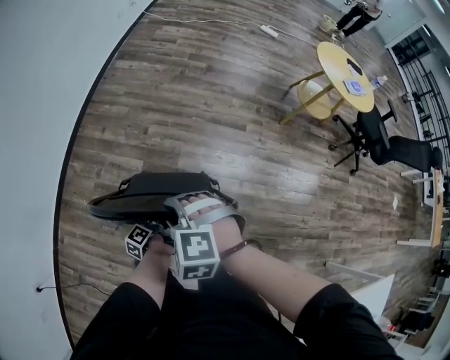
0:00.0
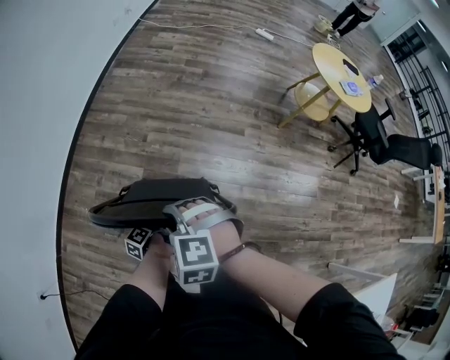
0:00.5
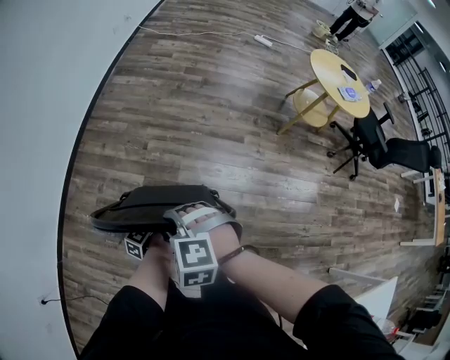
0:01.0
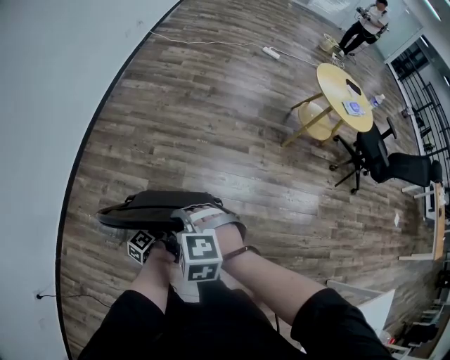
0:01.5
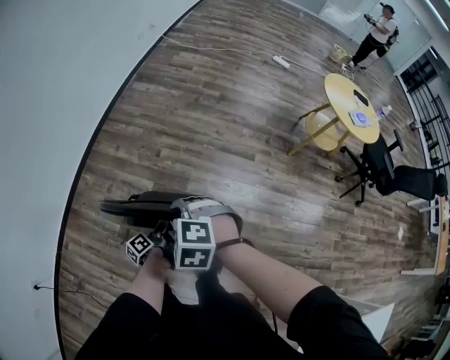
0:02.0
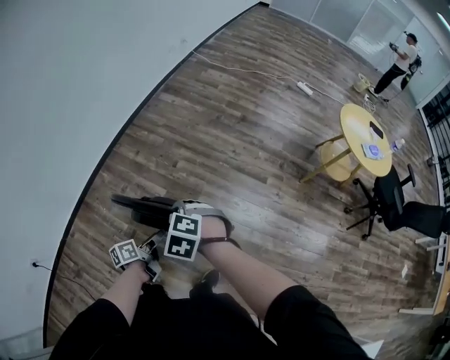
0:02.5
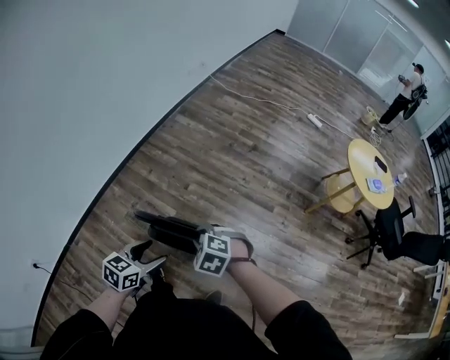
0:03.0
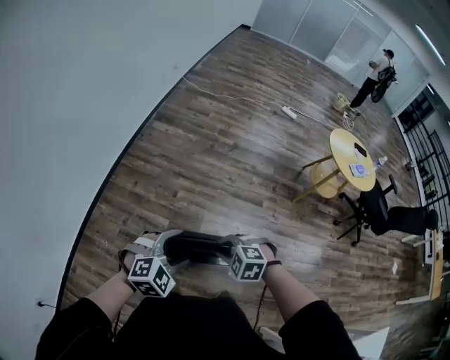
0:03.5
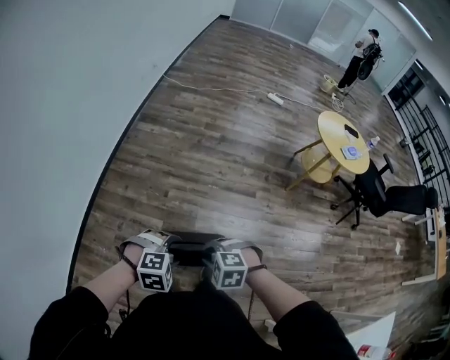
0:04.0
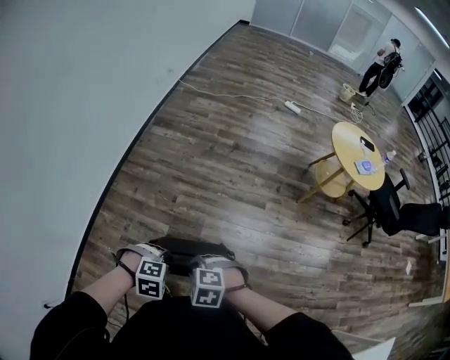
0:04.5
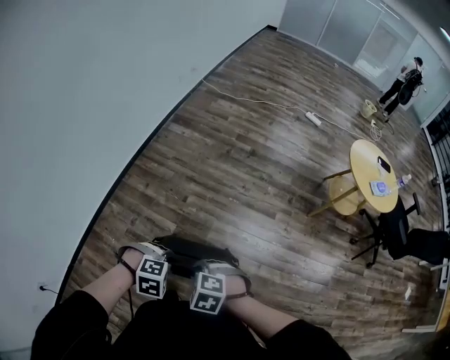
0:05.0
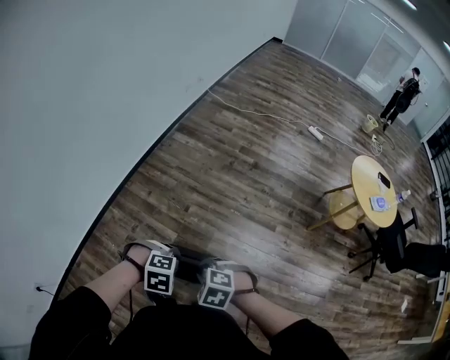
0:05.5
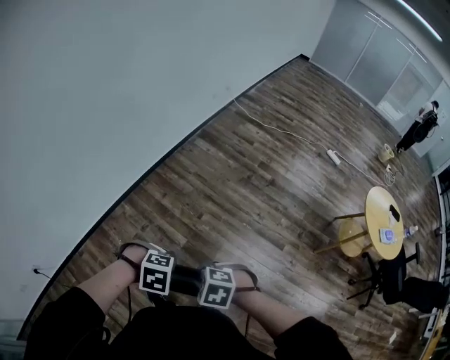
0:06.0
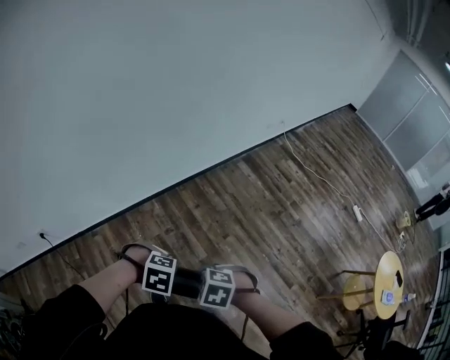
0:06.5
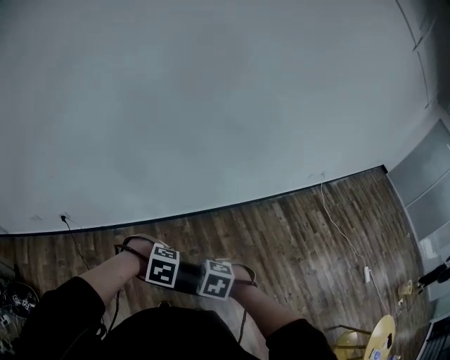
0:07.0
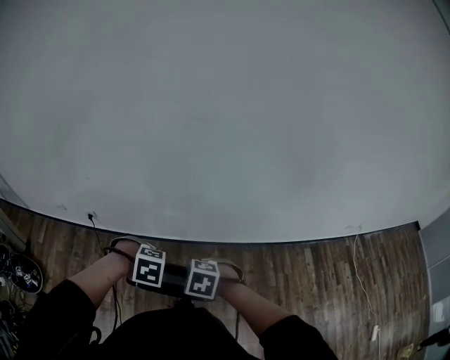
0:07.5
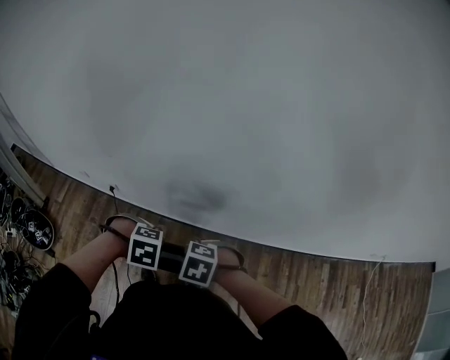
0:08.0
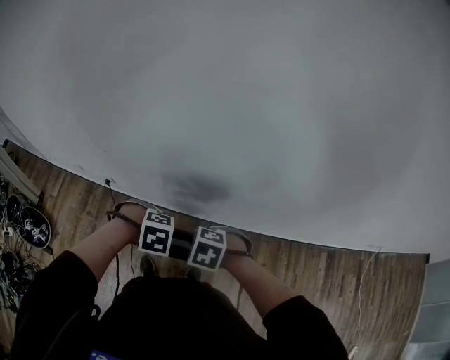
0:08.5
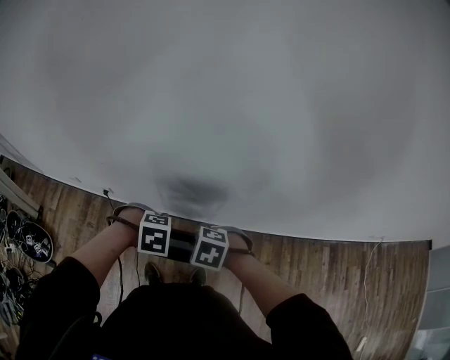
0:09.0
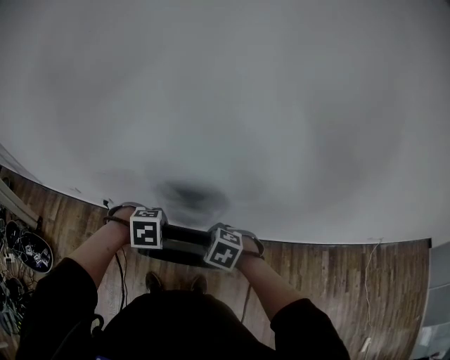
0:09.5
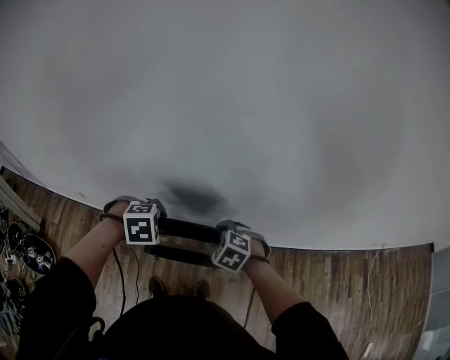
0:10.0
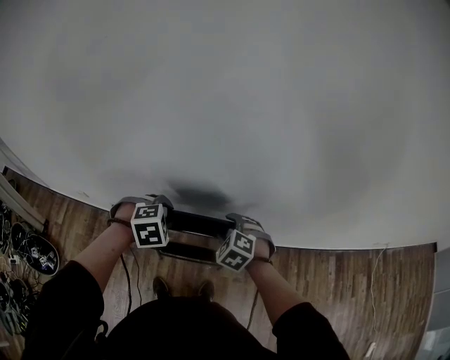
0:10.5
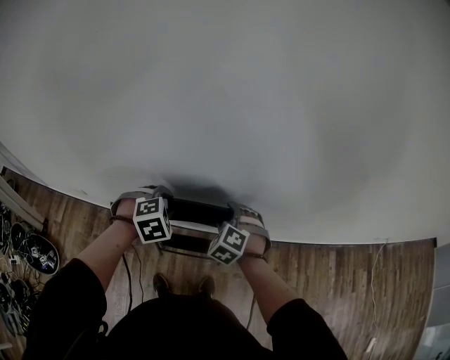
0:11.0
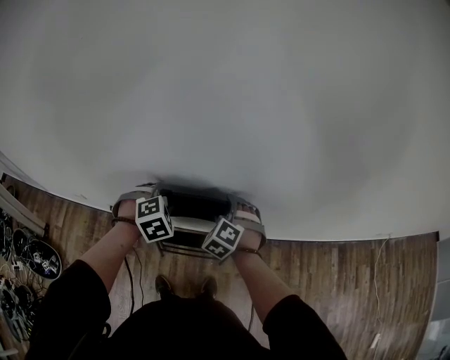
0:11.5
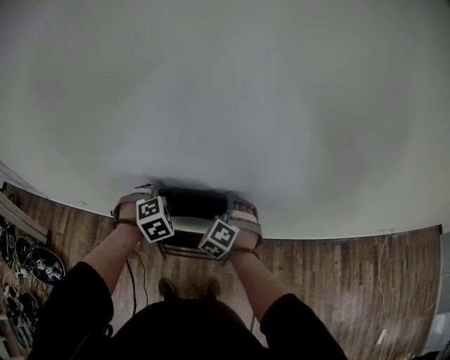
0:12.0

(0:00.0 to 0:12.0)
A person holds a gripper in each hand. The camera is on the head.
0:00.0 - 0:02.0: The left gripper shifts by some 5 cm.
0:02.0 - 0:04.0: The left gripper is displaced upward by approximately 20 cm, and rolls clockwise, seen from behind, by roughly 140 degrees.
0:04.0 - 0:06.0: The left gripper shifts by roughly 5 cm, swivels some 30 degrees, and closes its fingers, while the right gripper ends up about 10 cm from where it was.
0:06.0 - 0:08.0: Both grippers are carried approximately 60 cm. The right gripper rotates around the line of its fingers by some 60 degrees, counterclockwise from behind. The left gripper twists some 70 degrees counterclockwise, seen from behind.
0:08.0 - 0:10.0: The left gripper changes place by about 15 cm. The right gripper changes place by about 15 cm, swivels some 20 degrees, and opens.
0:10.0 - 0:12.0: Both grippers move forward, some 10 cm. The left gripper rotates approximately 20 degrees, while the right gripper turns by approximately 30 degrees, and opens up.

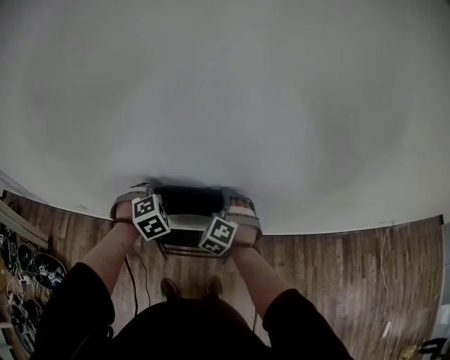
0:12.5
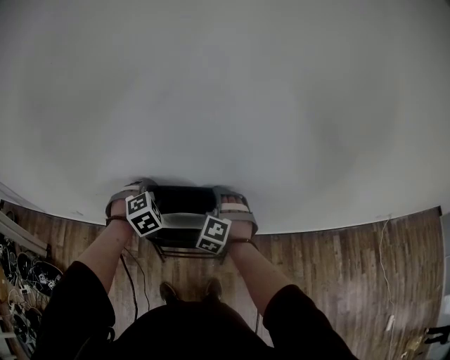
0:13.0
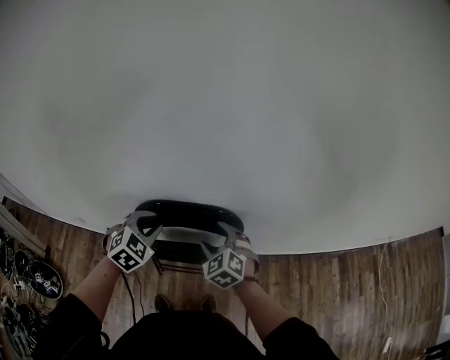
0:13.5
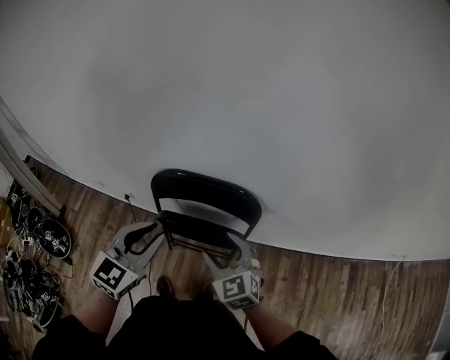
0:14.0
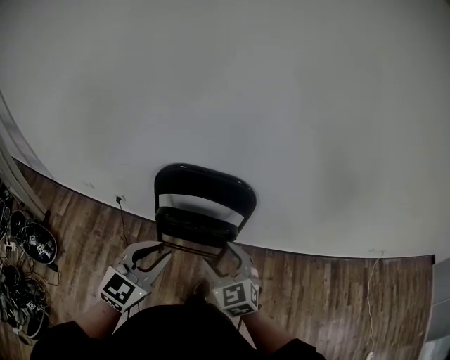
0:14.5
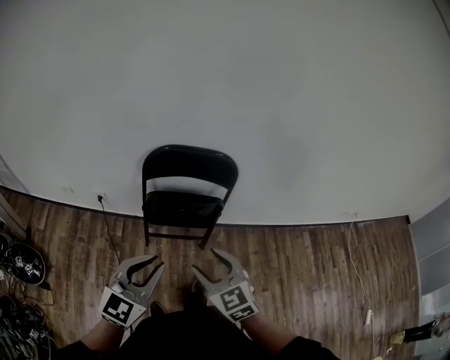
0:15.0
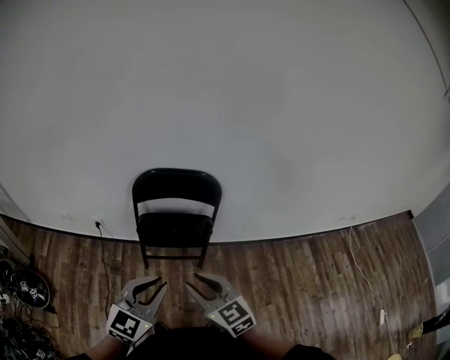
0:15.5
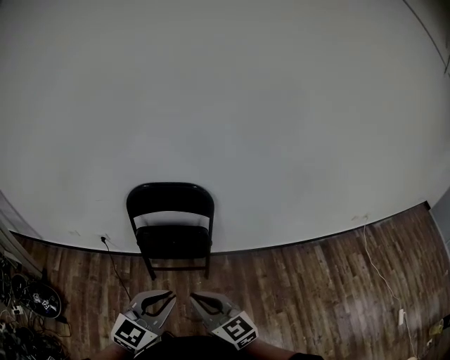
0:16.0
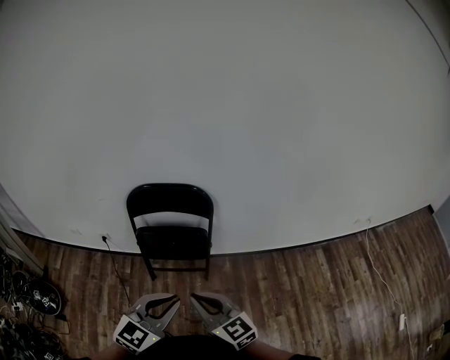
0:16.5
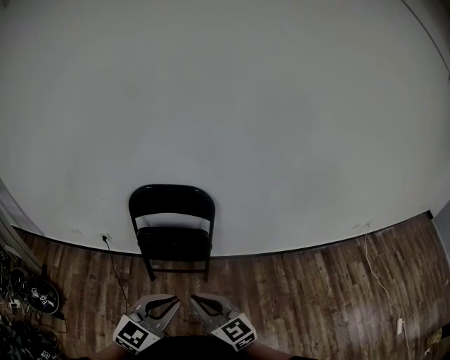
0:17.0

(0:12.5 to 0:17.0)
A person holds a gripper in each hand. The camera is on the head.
0:12.5 - 0:14.5: Both grippers move backward and upward, approximately 30 cm. The right gripper turns by some 40 degrees; the left gripper angles its fingers upward, by approximately 40 degrees.
0:14.5 - 0:17.0: The left gripper goes approximately 20 cm backward and to the right, while the right gripper goes about 20 cm backward, changes its angle by some 30 degrees, and closes its fingers.

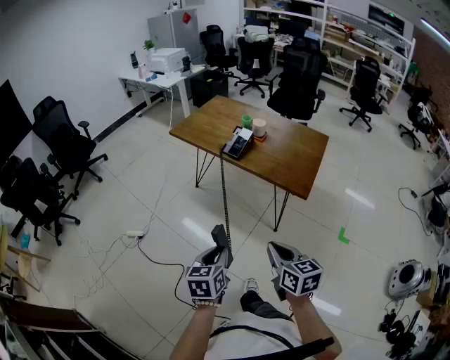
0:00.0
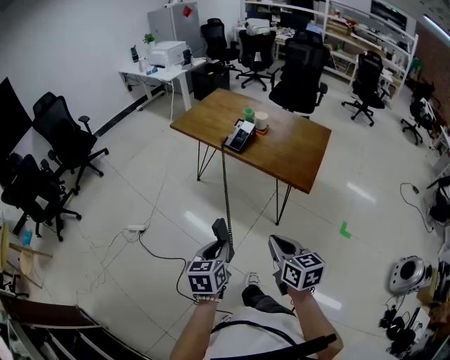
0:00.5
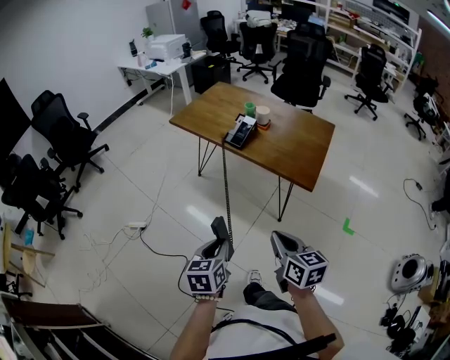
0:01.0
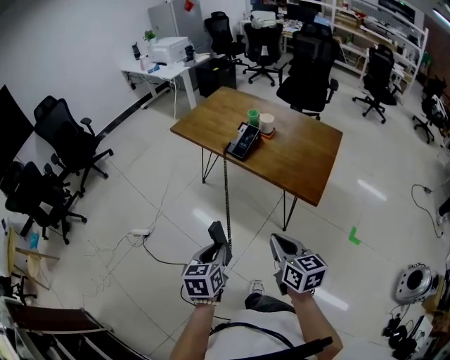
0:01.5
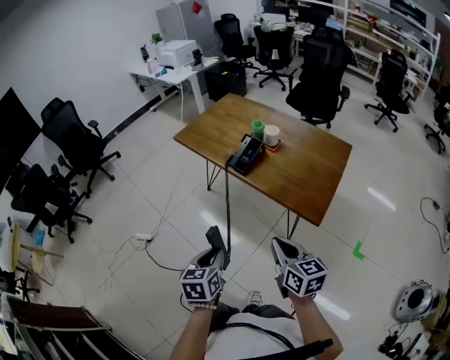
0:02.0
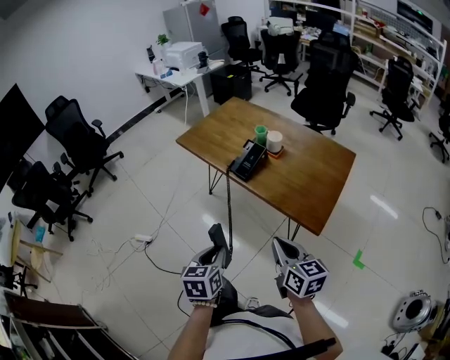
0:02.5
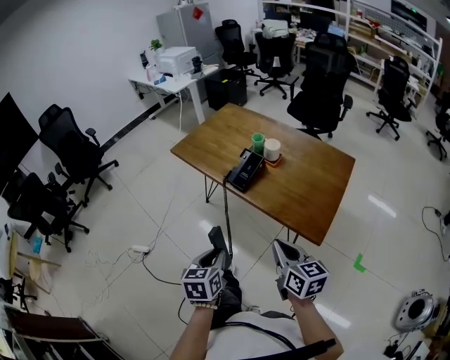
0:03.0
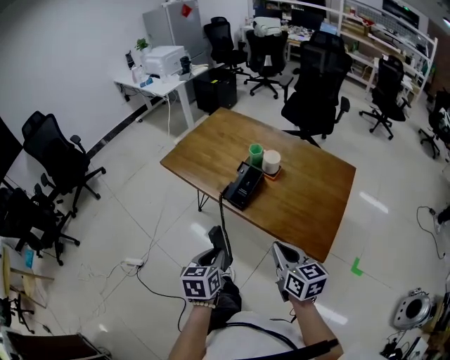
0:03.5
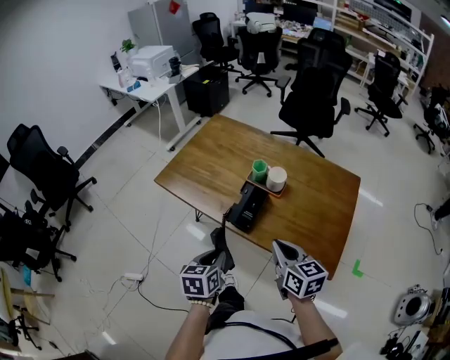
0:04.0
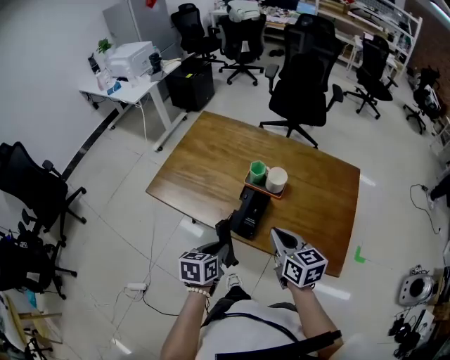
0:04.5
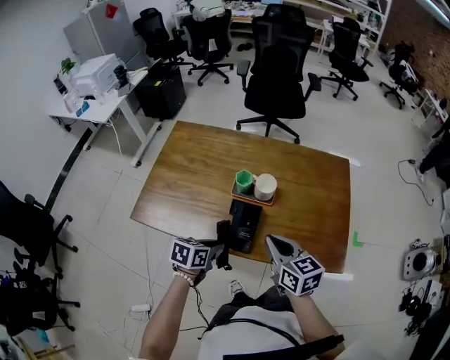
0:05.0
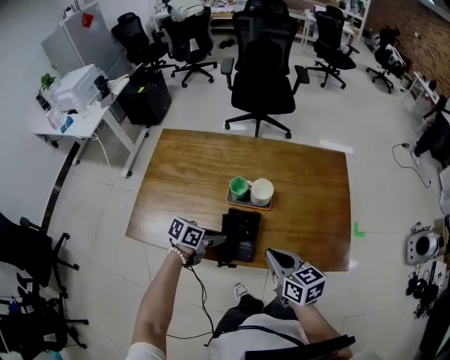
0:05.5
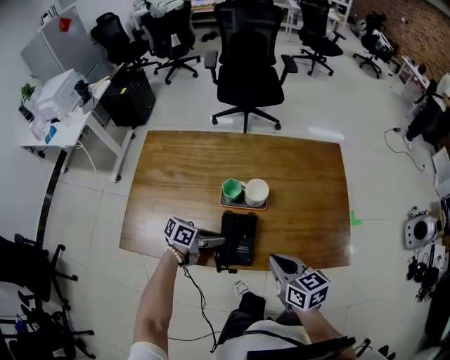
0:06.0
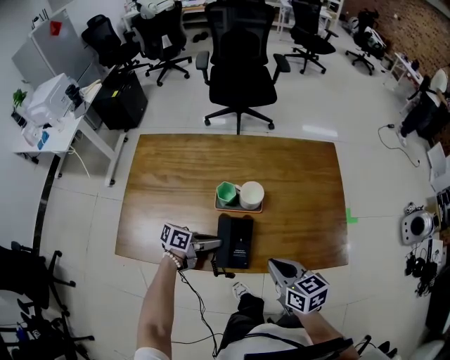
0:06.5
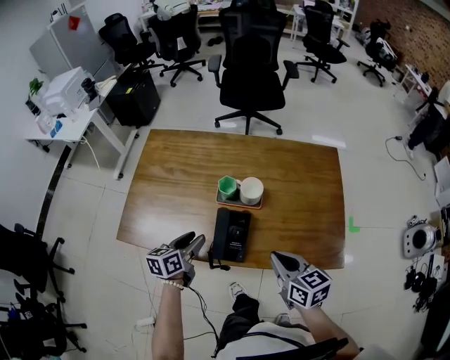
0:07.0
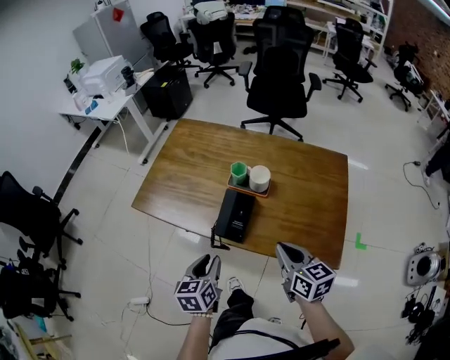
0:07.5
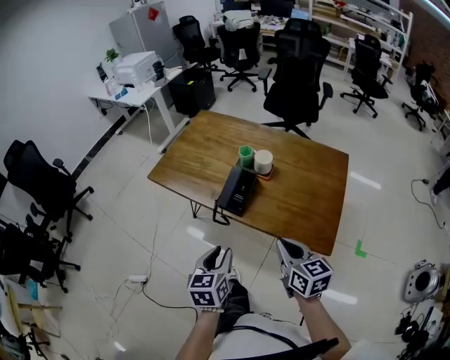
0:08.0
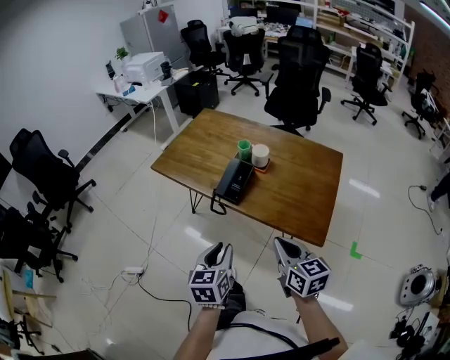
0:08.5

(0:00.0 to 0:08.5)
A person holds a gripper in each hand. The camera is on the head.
0:00.0 - 0:02.0: The two grippers go some 15 cm forward.
0:02.0 - 0:04.0: Both grippers move forward, approximately 30 cm.
0:04.0 - 0:06.5: The left gripper moves approximately 25 cm, and rotates some 70 degrees, while the right gripper ends up roughly 10 cm from where it was, and turns by approximately 20 degrees.
0:06.5 - 0:08.5: The right gripper shifts by roughly 25 cm, and turns by some 20 degrees. Meanwhile the left gripper ends up some 40 cm from where it was, rotates approximately 80 degrees, and opens, then closes again.

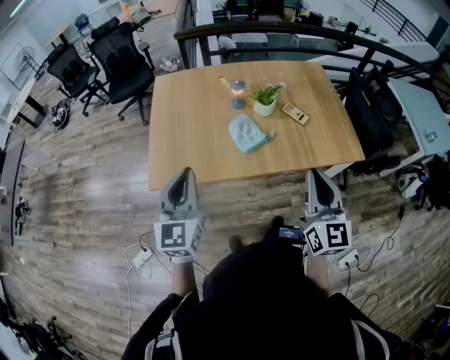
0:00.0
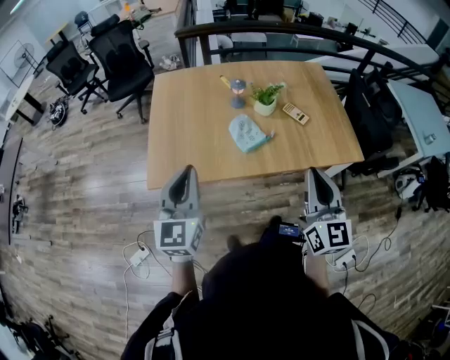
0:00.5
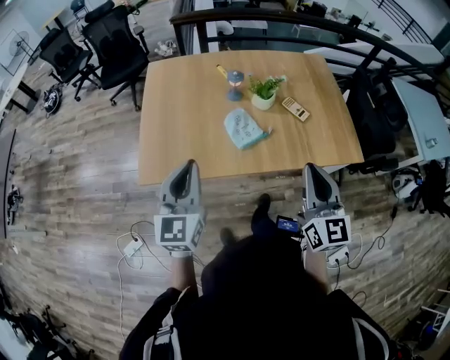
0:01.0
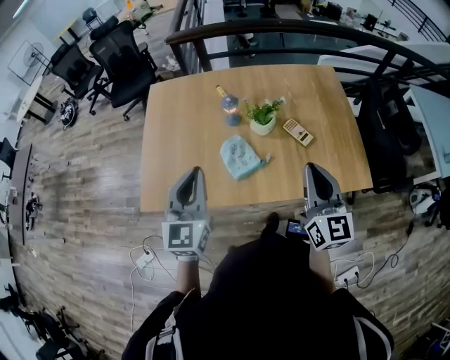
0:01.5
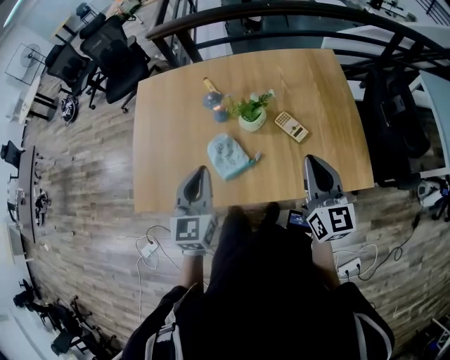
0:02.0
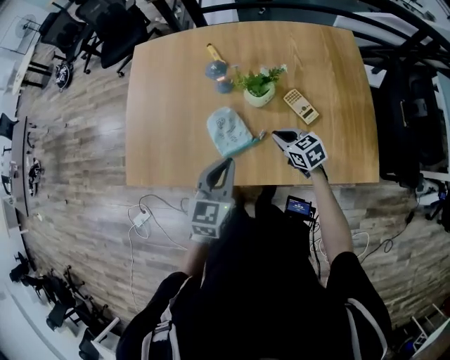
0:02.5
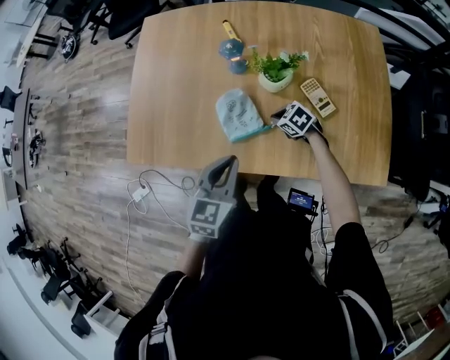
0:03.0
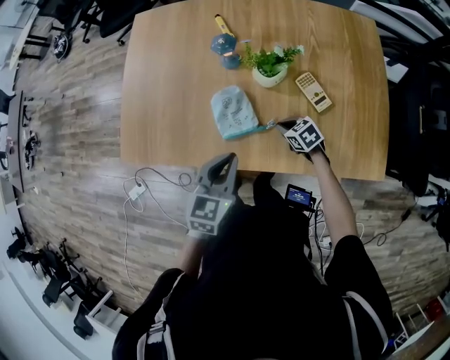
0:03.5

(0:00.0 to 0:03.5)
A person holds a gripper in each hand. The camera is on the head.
0:00.0 - 0:02.0: The two grippers go roughly 30 cm forward and to the right.
0:02.0 - 0:03.5: The right gripper moves downward, about 35 cm, and angles its fingers downward, by roughly 50 degrees; the left gripper travels downward by some 15 cm, and turns by about 20 degrees.
